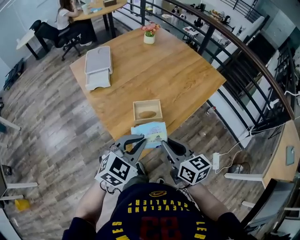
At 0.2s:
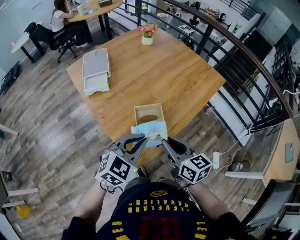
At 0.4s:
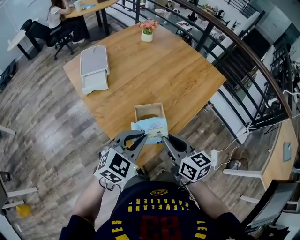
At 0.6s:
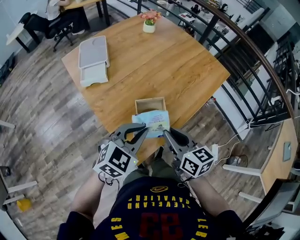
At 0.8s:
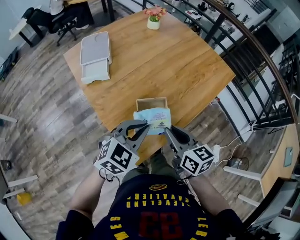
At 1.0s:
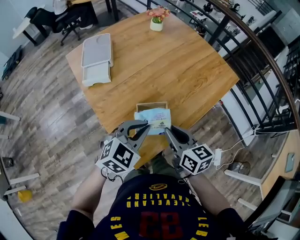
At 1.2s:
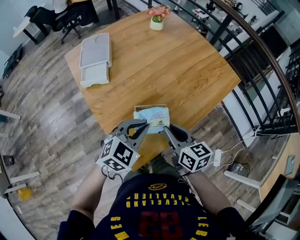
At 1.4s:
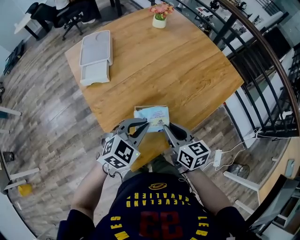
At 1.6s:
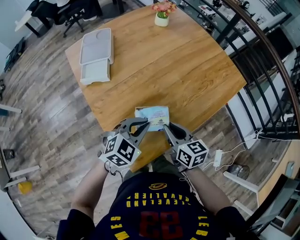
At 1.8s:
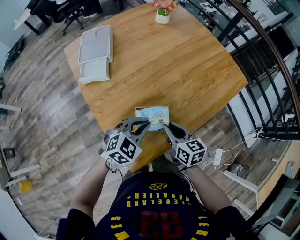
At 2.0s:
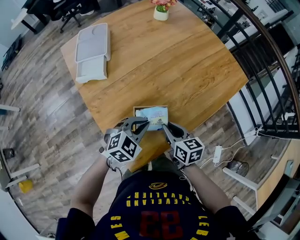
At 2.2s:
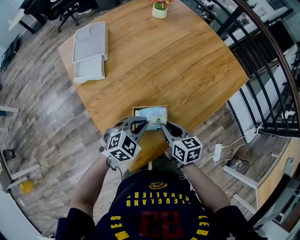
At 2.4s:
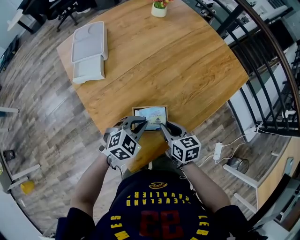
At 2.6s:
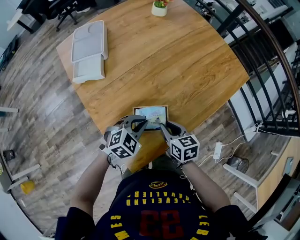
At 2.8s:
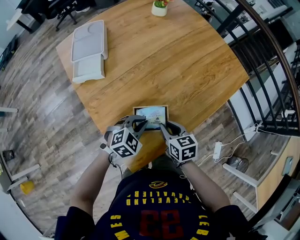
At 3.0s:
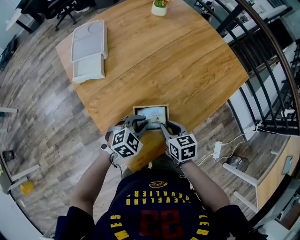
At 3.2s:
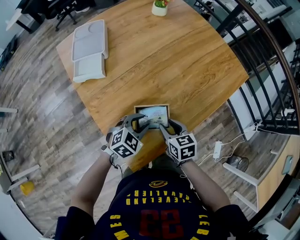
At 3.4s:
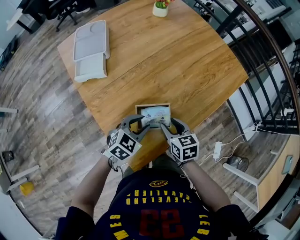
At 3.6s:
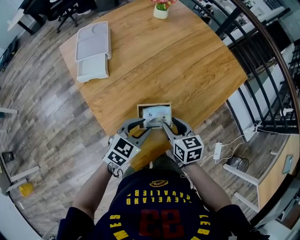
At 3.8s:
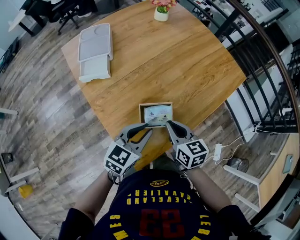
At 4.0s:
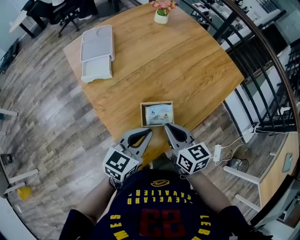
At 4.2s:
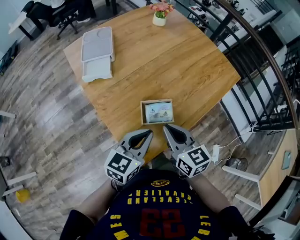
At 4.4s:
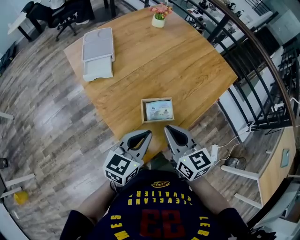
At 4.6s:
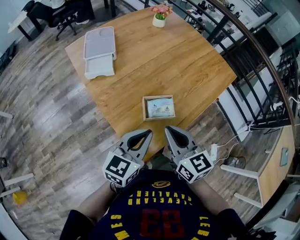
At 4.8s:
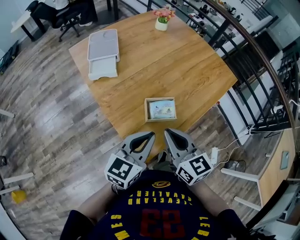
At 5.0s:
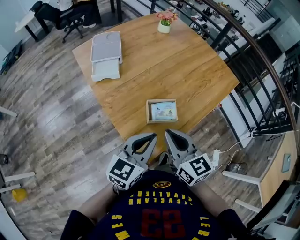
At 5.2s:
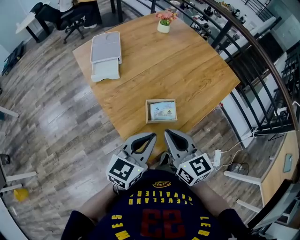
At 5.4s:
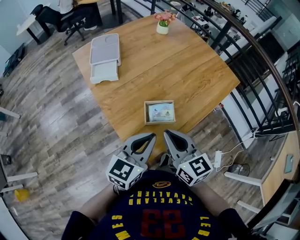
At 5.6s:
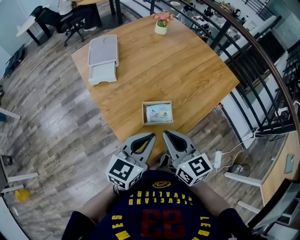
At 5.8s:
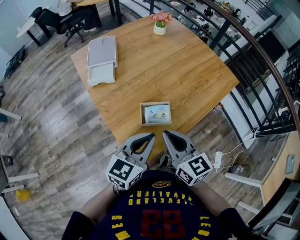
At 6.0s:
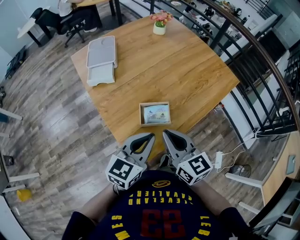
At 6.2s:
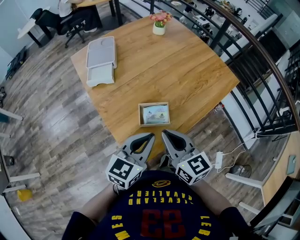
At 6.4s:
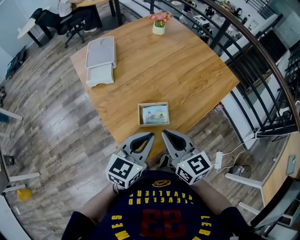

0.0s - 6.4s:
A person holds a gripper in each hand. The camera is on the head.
0.0s - 1.6s: Both grippers move forward and downward, about 20 cm.
1.6s - 3.2s: Both grippers travel together downward, some 10 cm. The left gripper opens up.
3.2s - 4.8s: The two grippers go some 25 cm upward and backward. The right gripper turns by some 30 degrees, and closes its fingers, while the left gripper tilts its fingers roughly 30 degrees upward, and closes its fingers.
4.8s - 6.4s: The left gripper is displaced to the right by about 5 cm.

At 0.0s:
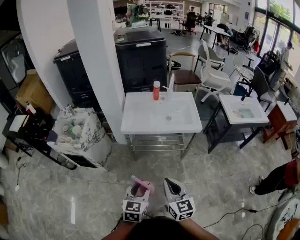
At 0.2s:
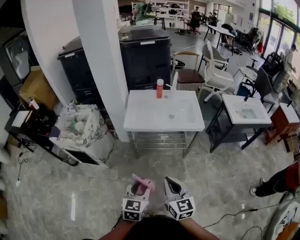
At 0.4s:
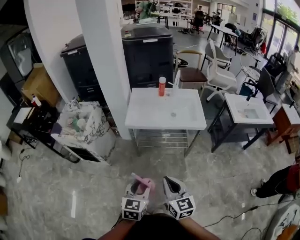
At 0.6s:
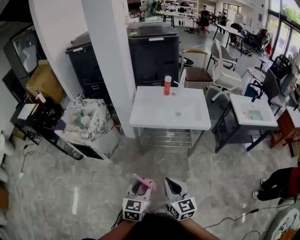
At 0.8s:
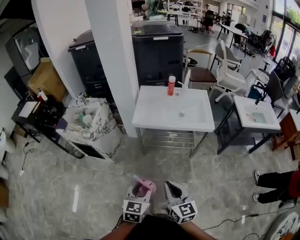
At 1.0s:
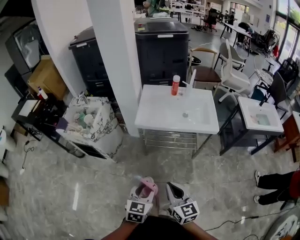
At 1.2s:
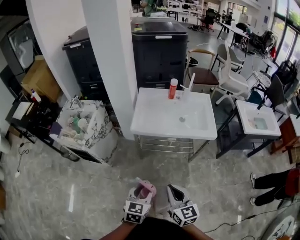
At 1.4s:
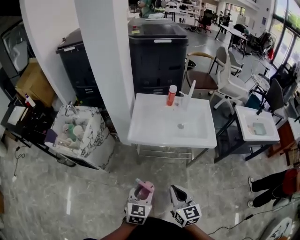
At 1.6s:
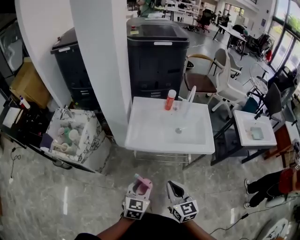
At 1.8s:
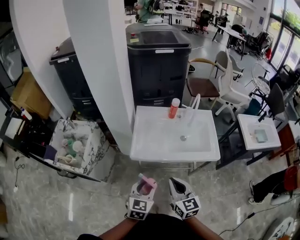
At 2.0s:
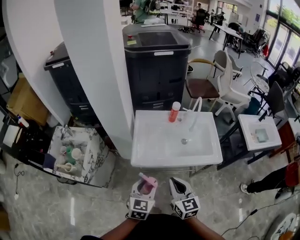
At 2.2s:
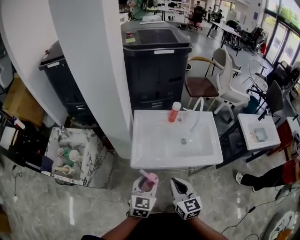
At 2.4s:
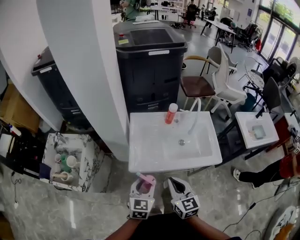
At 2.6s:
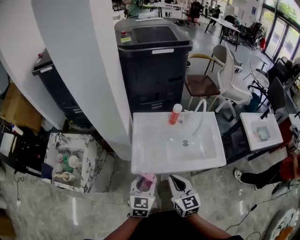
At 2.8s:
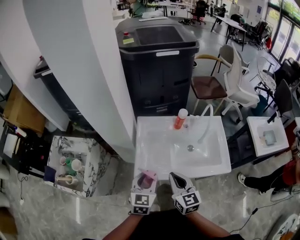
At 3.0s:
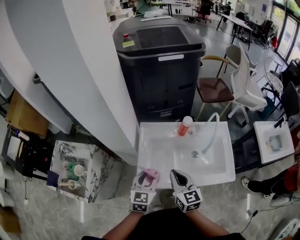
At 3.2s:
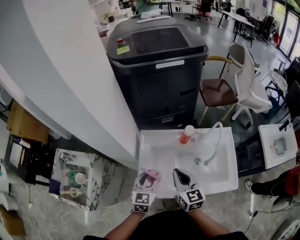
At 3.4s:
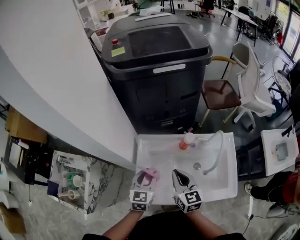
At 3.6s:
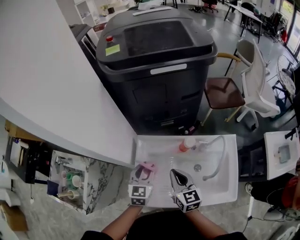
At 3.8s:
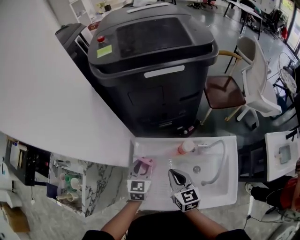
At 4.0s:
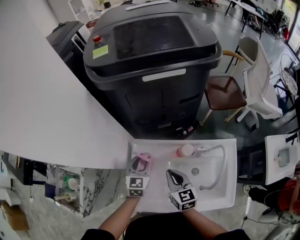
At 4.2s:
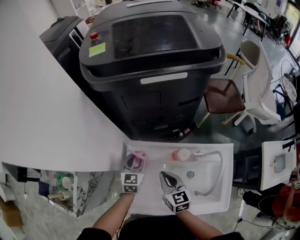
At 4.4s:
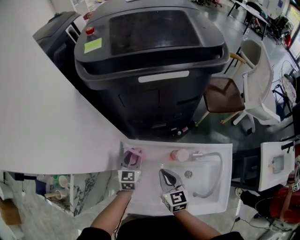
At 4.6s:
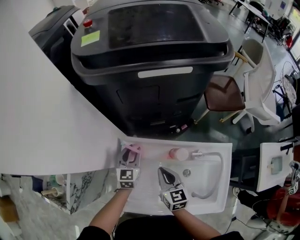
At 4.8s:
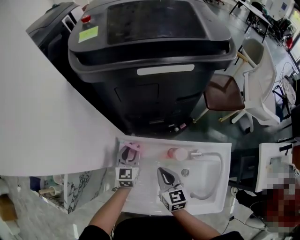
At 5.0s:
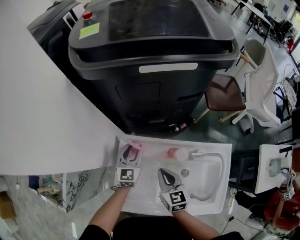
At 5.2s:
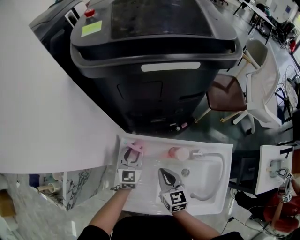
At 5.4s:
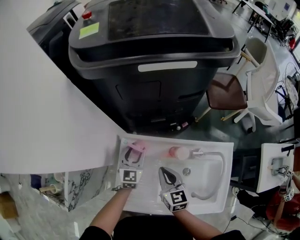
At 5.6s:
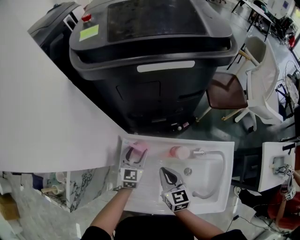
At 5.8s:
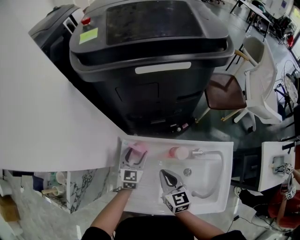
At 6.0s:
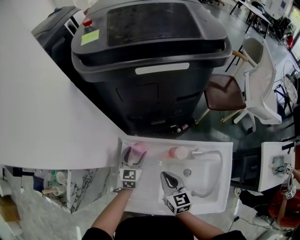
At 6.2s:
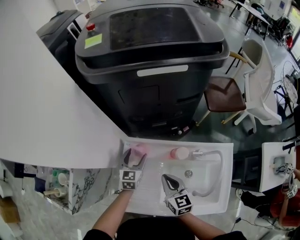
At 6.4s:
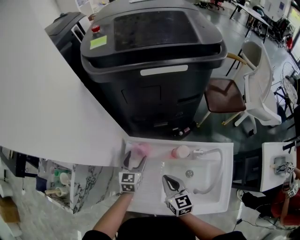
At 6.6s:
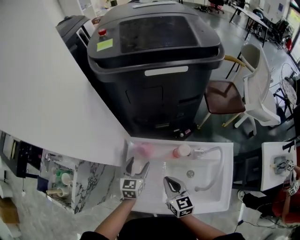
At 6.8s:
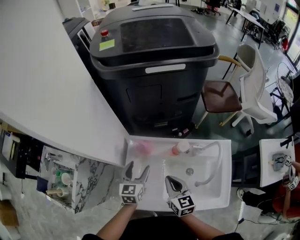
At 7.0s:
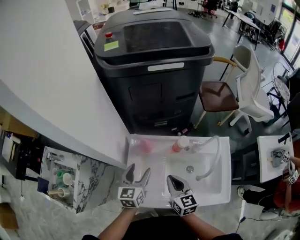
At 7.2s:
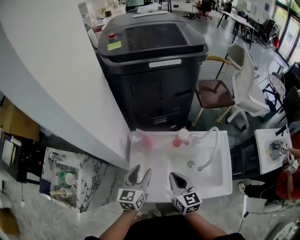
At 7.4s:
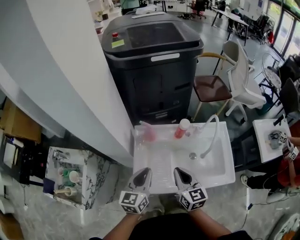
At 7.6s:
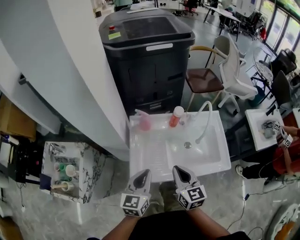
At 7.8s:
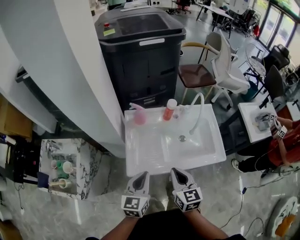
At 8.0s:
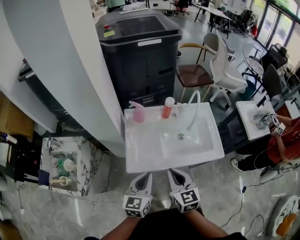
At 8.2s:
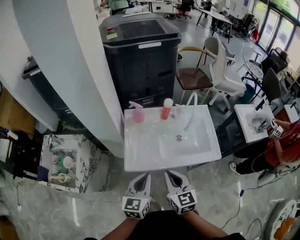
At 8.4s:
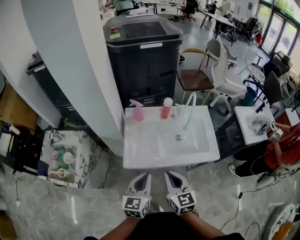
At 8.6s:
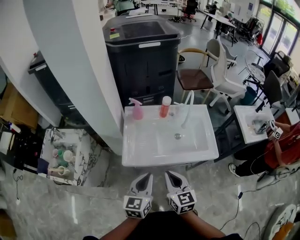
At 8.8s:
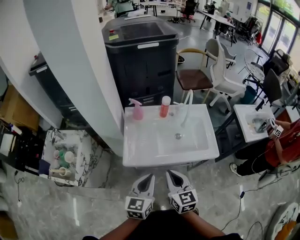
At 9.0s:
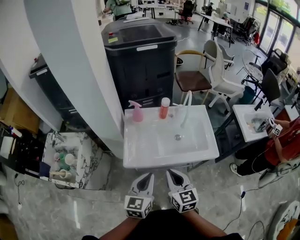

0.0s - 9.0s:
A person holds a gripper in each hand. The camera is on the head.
0.0s - 1.6s: Both grippers move forward, about 25 cm.
1.6s - 3.0s: The grippers both shift forward by approximately 35 cm.
3.0s - 4.4s: The left gripper is displaced forward by approximately 30 cm. Meanwhile the right gripper heads forward and downward, covering about 25 cm.
4.4s - 6.0s: The left gripper opens up.
6.0s - 7.6s: Both grippers travel together backward and upward, approximately 30 cm. The left gripper closes up.
7.6s - 9.0s: The right gripper goes some 15 cm backward. The left gripper moves backward and to the right, some 20 cm.

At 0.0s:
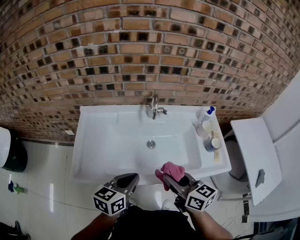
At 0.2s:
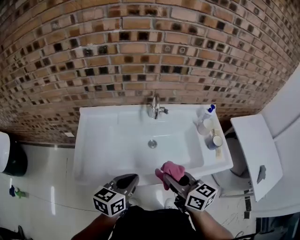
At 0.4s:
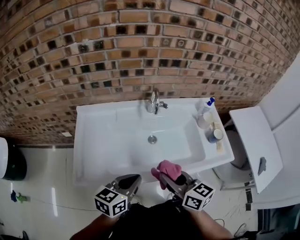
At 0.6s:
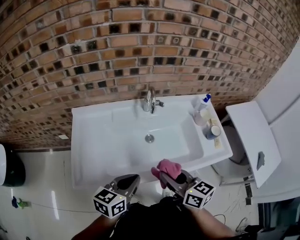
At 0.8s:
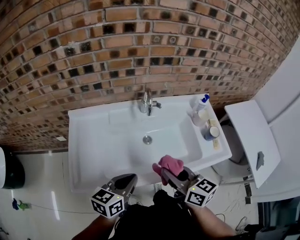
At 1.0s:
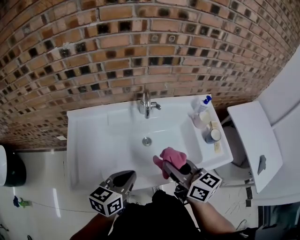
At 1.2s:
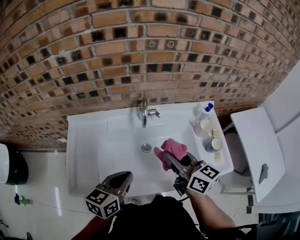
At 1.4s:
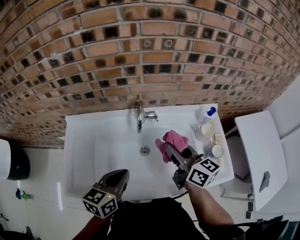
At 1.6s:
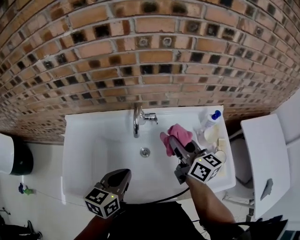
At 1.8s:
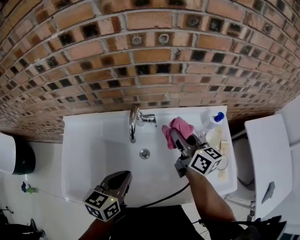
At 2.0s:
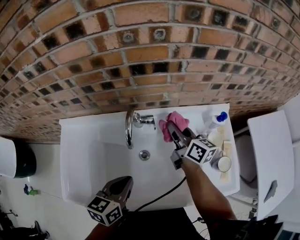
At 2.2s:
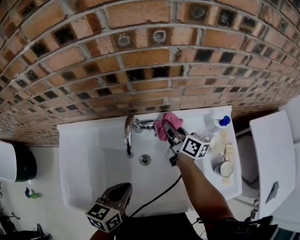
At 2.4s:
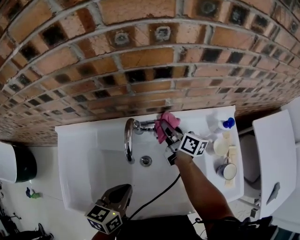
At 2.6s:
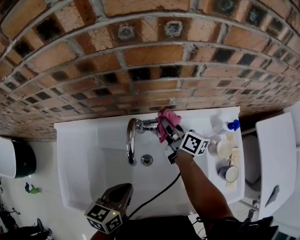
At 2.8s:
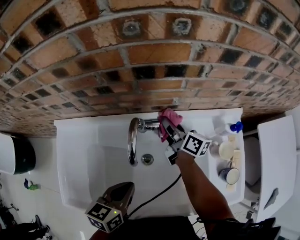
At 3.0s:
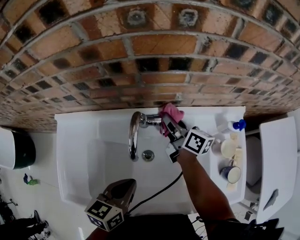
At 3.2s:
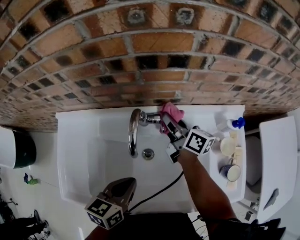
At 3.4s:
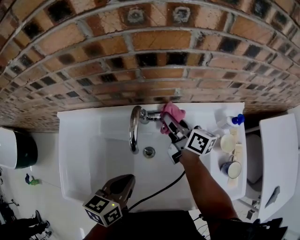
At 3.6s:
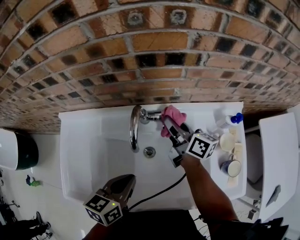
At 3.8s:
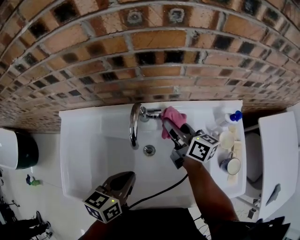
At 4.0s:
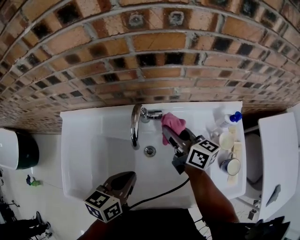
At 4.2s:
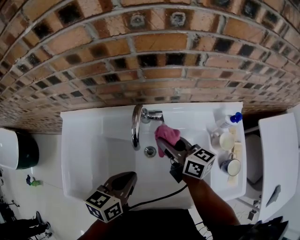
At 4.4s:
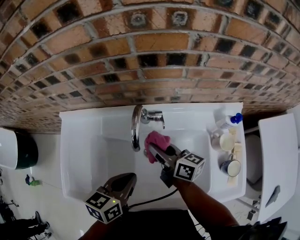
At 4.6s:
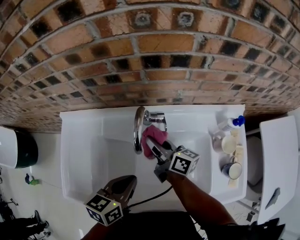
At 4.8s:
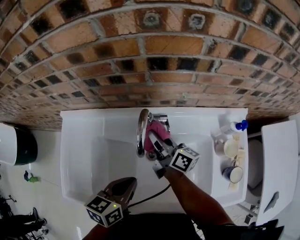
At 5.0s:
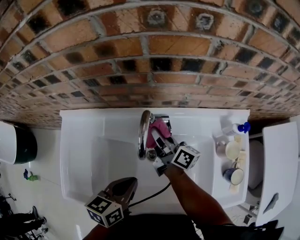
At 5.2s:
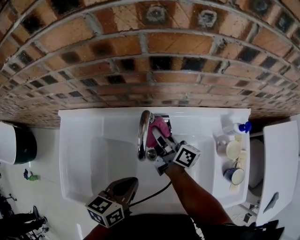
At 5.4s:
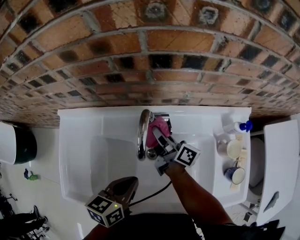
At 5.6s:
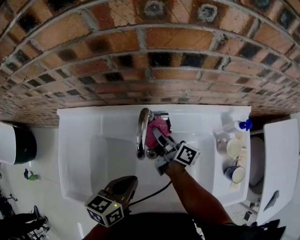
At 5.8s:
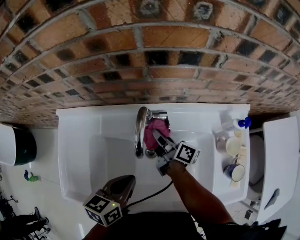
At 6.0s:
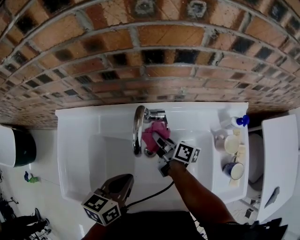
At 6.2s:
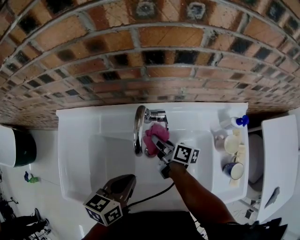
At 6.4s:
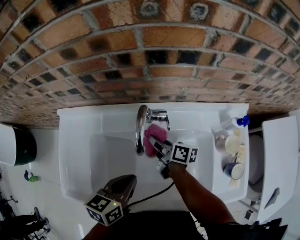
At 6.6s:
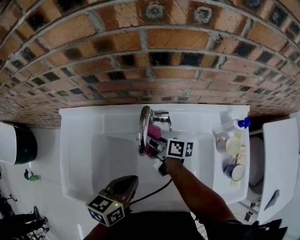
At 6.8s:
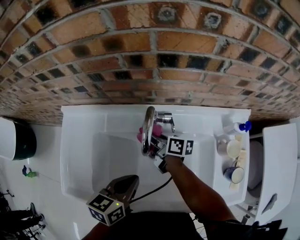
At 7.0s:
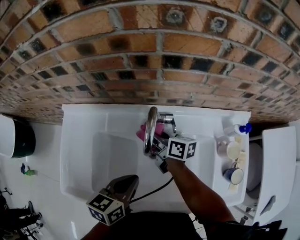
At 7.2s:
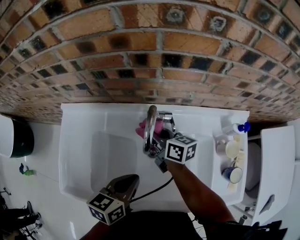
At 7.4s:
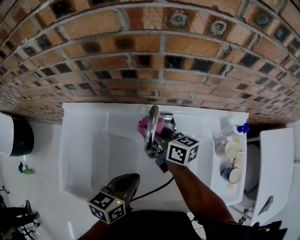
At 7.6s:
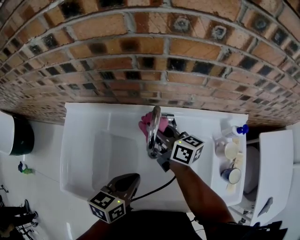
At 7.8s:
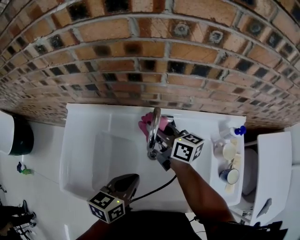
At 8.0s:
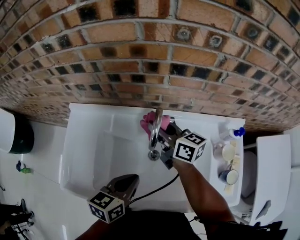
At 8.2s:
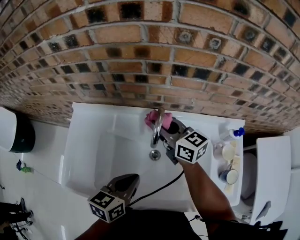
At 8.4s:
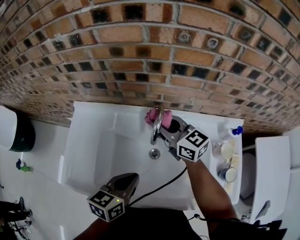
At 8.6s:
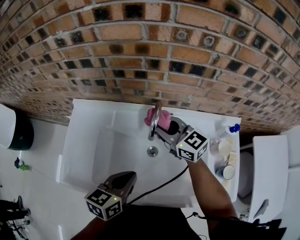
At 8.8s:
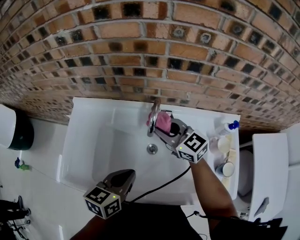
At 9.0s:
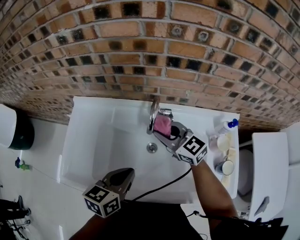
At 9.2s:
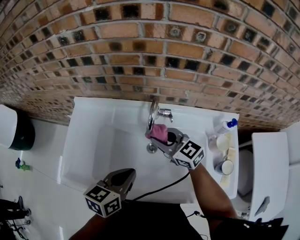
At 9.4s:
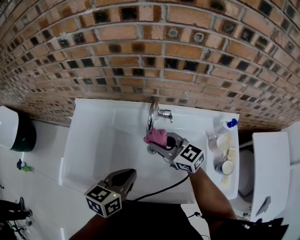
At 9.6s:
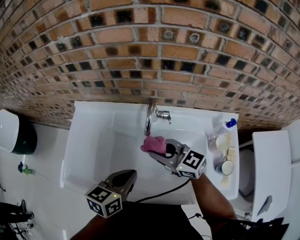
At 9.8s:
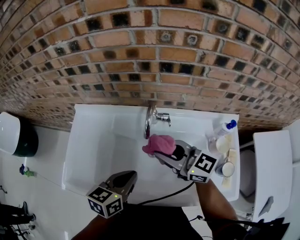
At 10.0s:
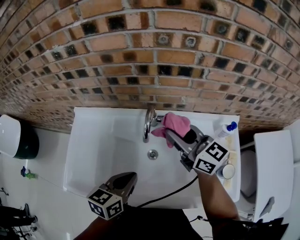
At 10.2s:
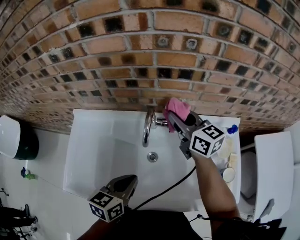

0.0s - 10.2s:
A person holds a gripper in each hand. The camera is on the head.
0.0s - 1.4s: The left gripper is displaced forward by roughly 10 cm, while the right gripper shifts about 20 cm forward.
1.4s - 3.0s: The left gripper goes approximately 10 cm forward and downward, while the right gripper is displaced forward and downward by some 30 cm, and turns by approximately 30 degrees.
3.0s - 4.4s: The right gripper moves backward and to the left, approximately 15 cm.
4.4s - 5.8s: The right gripper heads downward and forward, covering some 10 cm, and turns by roughly 30 degrees.
5.8s - 7.2s: The right gripper changes place by about 5 cm, and turns by about 40 degrees.
7.2s - 8.8s: The left gripper shifts by some 5 cm; the right gripper goes some 10 cm upward and backward, and rolls counterclockwise, seen from behind, by approximately 50 degrees.
8.8s - 10.2s: The right gripper travels to the right, upward and forward by roughly 10 cm, and swivels roughly 30 degrees.
